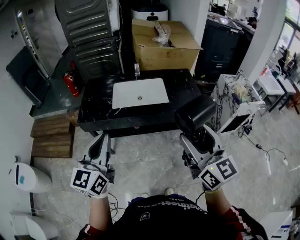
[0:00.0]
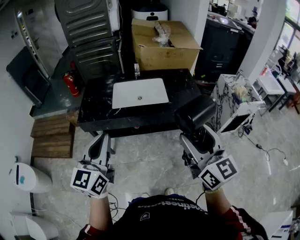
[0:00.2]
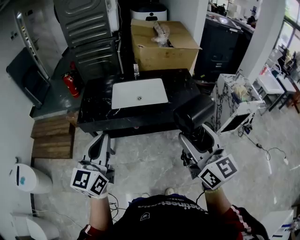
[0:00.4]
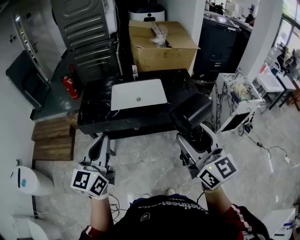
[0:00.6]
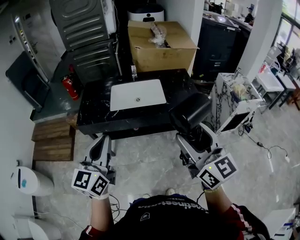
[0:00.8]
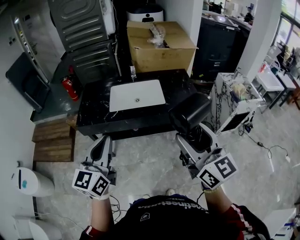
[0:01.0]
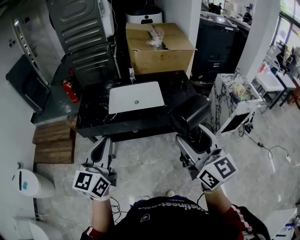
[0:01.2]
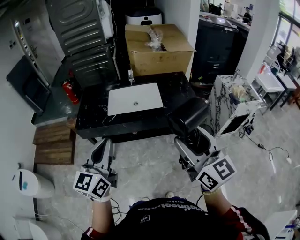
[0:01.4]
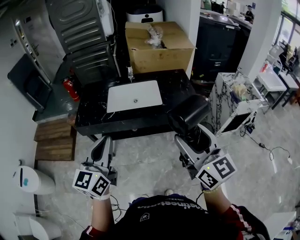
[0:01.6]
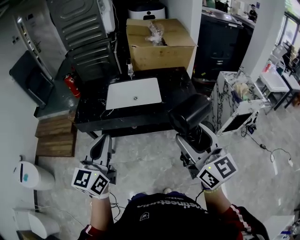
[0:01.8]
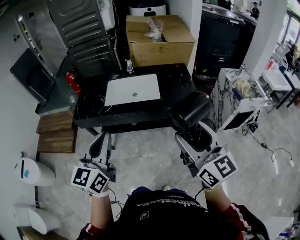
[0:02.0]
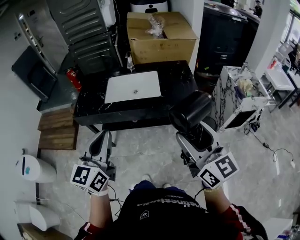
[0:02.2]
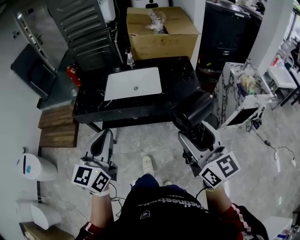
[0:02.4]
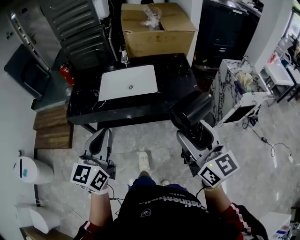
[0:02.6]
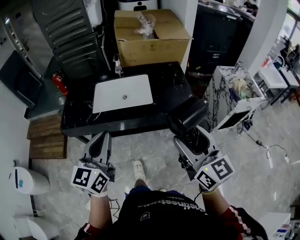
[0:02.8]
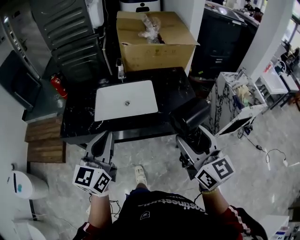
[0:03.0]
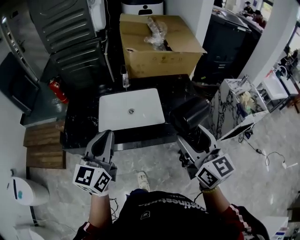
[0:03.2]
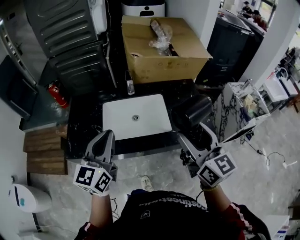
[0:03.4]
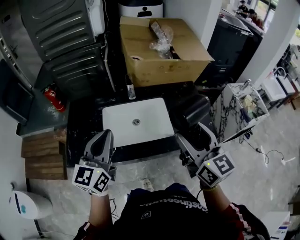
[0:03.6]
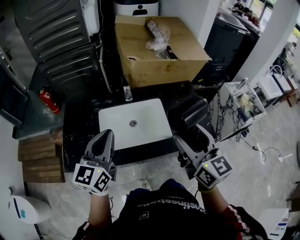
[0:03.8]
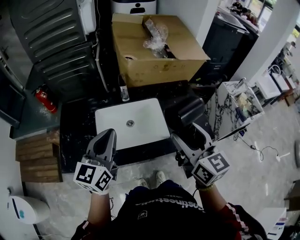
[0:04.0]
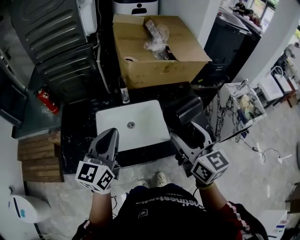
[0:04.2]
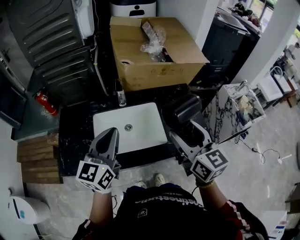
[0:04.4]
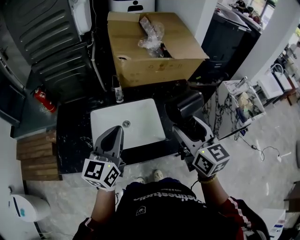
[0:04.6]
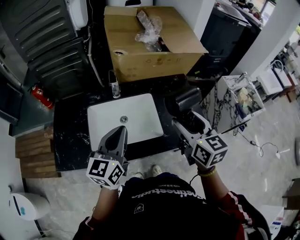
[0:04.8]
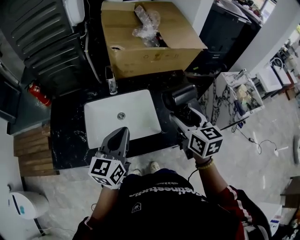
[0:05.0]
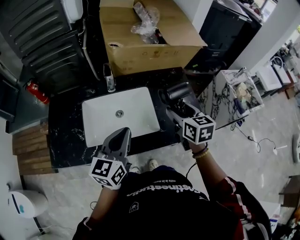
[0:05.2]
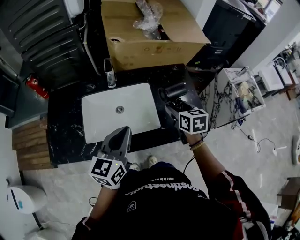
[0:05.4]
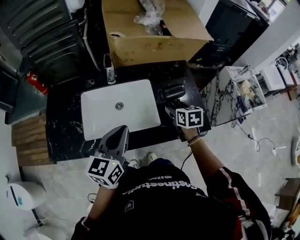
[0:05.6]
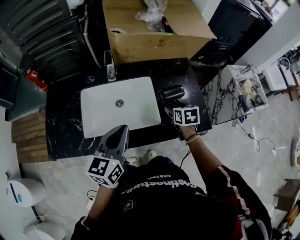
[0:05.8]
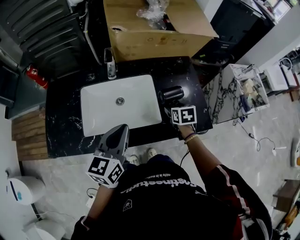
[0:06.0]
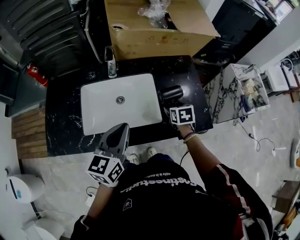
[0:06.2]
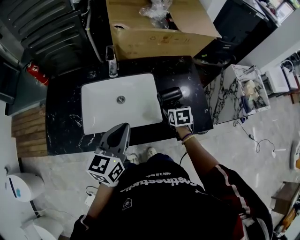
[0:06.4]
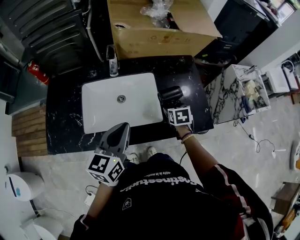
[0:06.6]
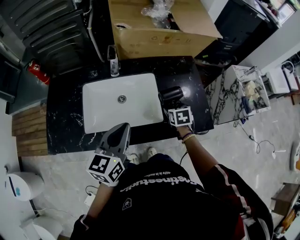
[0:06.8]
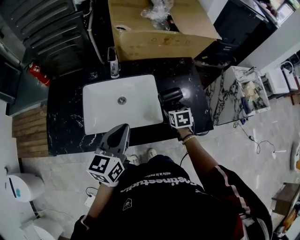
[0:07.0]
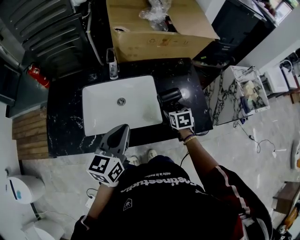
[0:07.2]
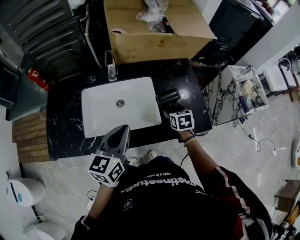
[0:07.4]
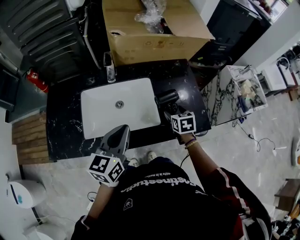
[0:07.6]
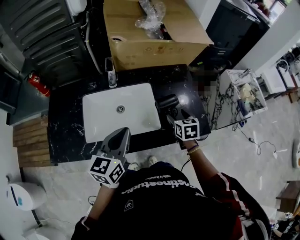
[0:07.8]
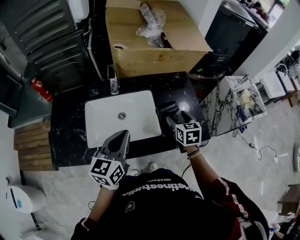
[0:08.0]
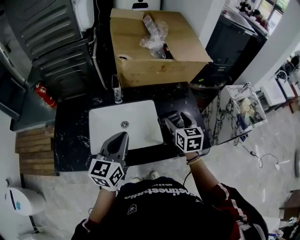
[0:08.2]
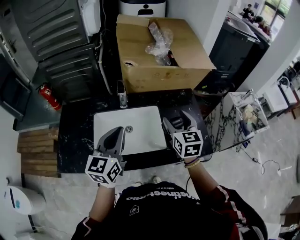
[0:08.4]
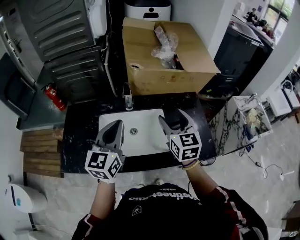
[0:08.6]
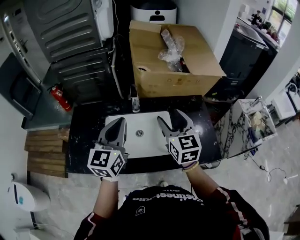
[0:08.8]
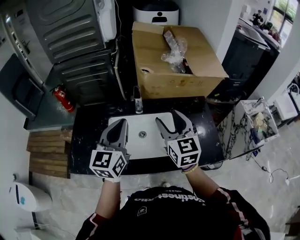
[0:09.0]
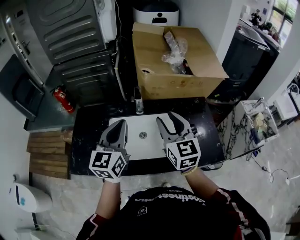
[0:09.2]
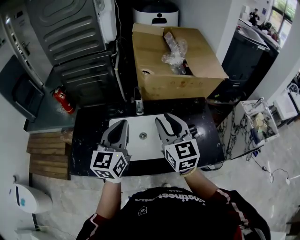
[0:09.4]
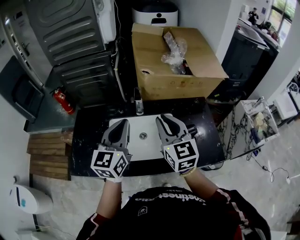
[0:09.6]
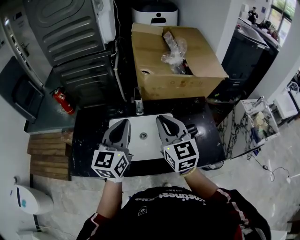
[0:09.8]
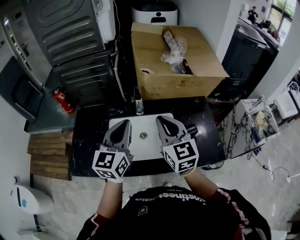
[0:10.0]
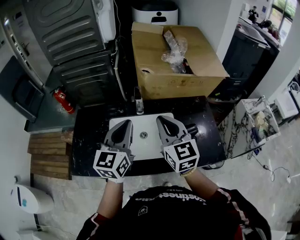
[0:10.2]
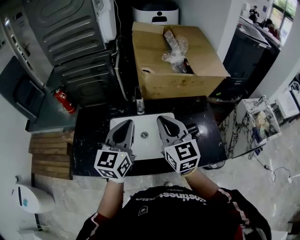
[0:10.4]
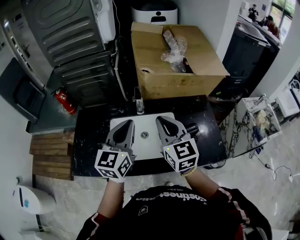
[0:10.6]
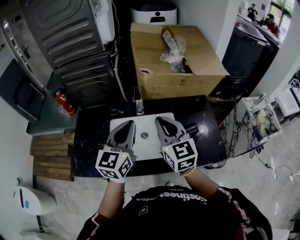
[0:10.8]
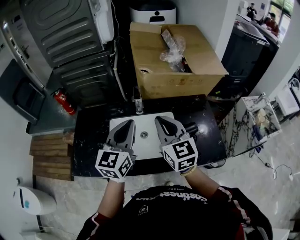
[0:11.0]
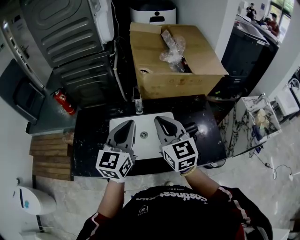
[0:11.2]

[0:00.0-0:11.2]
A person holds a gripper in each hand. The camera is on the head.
0.0 to 1.6 s: The grippers both shift to the right by roughly 5 cm.
1.6 to 3.2 s: Both grippers travel together forward, roughly 25 cm.
3.2 to 4.8 s: The two grippers go approximately 20 cm forward.
4.8 to 6.4 s: The right gripper shifts some 30 cm downward, and tilts its fingers some 40 degrees downward; the left gripper shifts some 5 cm downward.
6.4 to 8.0 s: The right gripper heads upward, covering approximately 10 cm.
8.0 to 9.6 s: The left gripper moves upward, to the left and forward, approximately 15 cm; the right gripper goes approximately 30 cm upward and to the left, angles its fingers upward, by about 30 degrees, and closes up.
9.6 to 11.2 s: The grippers stay close to where they were, moving slightly.

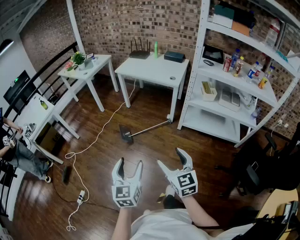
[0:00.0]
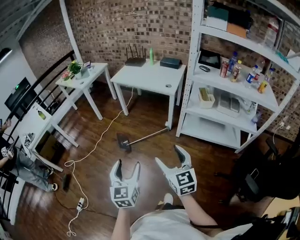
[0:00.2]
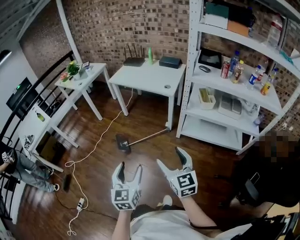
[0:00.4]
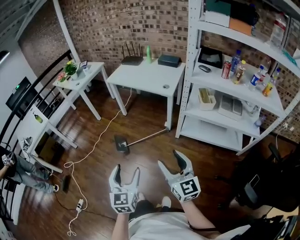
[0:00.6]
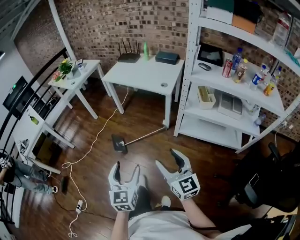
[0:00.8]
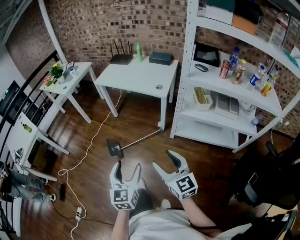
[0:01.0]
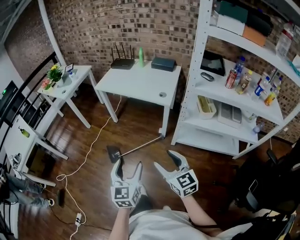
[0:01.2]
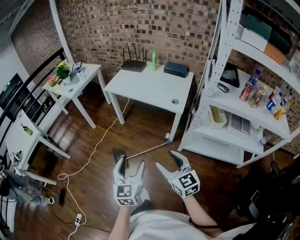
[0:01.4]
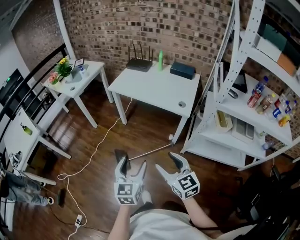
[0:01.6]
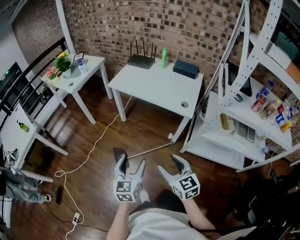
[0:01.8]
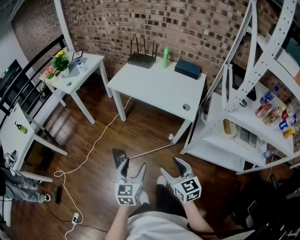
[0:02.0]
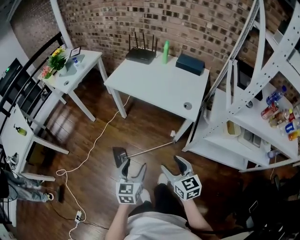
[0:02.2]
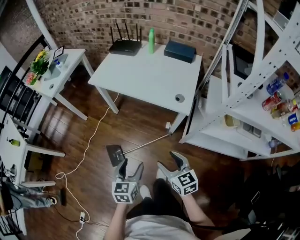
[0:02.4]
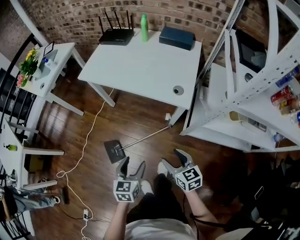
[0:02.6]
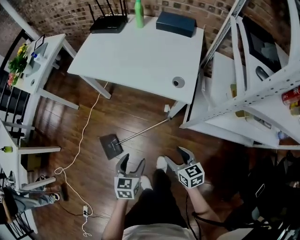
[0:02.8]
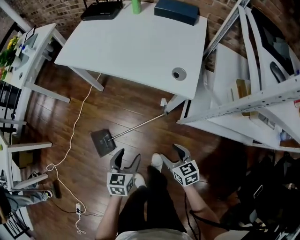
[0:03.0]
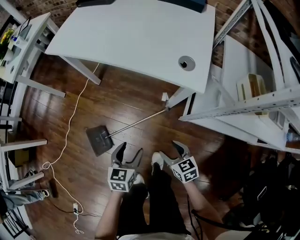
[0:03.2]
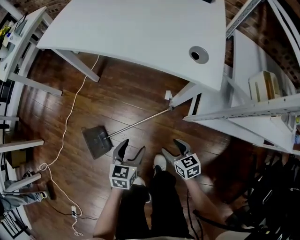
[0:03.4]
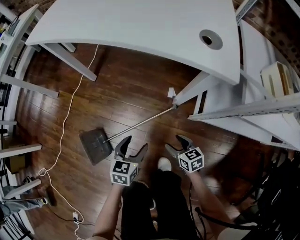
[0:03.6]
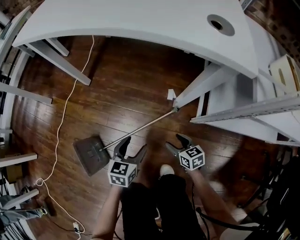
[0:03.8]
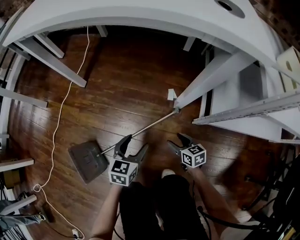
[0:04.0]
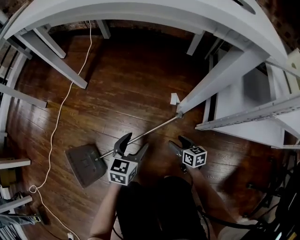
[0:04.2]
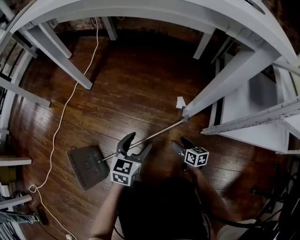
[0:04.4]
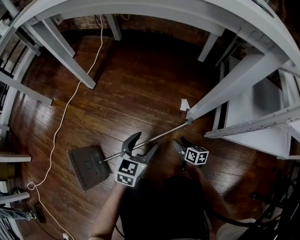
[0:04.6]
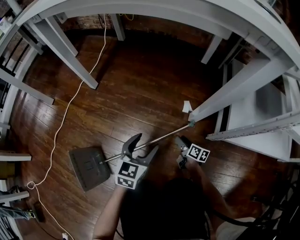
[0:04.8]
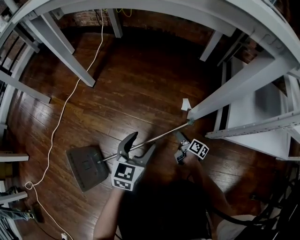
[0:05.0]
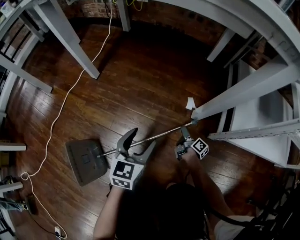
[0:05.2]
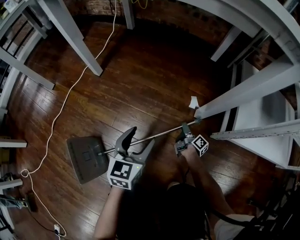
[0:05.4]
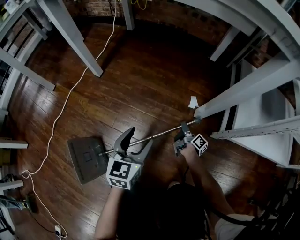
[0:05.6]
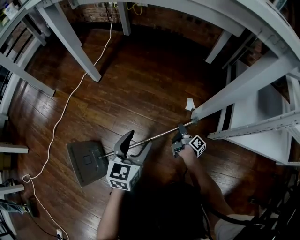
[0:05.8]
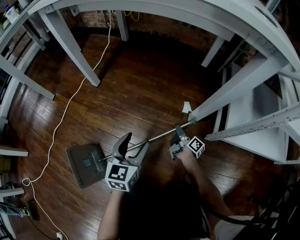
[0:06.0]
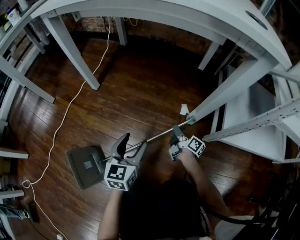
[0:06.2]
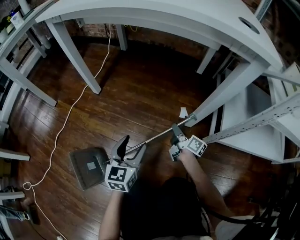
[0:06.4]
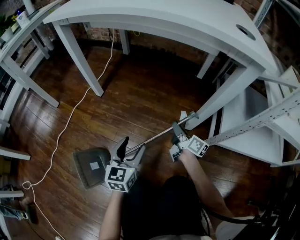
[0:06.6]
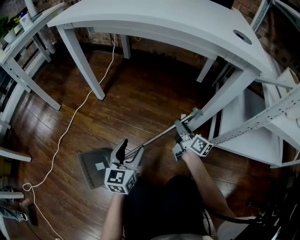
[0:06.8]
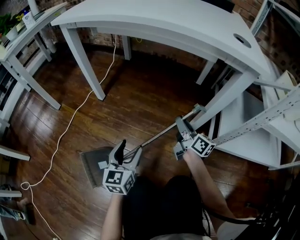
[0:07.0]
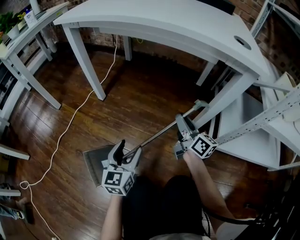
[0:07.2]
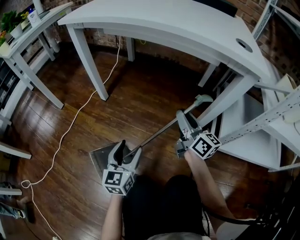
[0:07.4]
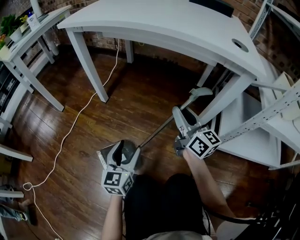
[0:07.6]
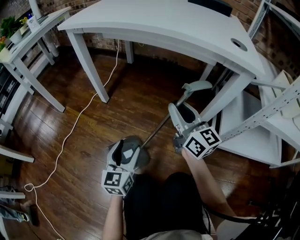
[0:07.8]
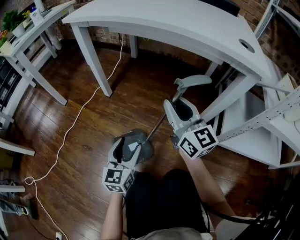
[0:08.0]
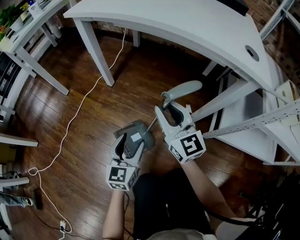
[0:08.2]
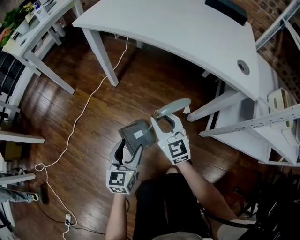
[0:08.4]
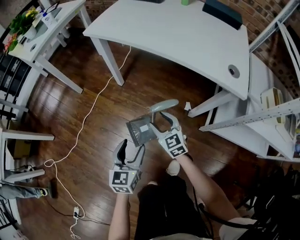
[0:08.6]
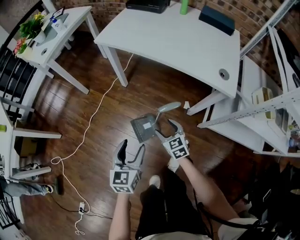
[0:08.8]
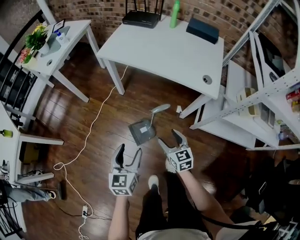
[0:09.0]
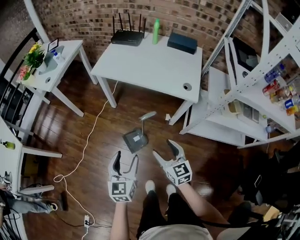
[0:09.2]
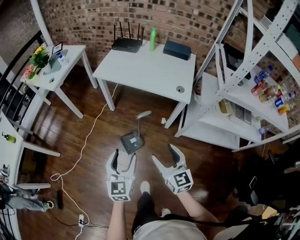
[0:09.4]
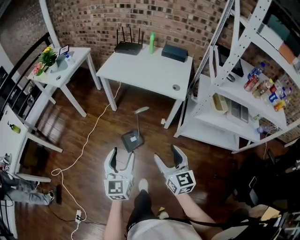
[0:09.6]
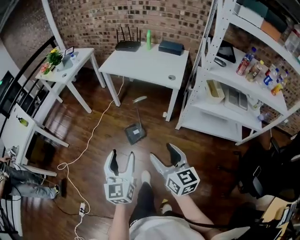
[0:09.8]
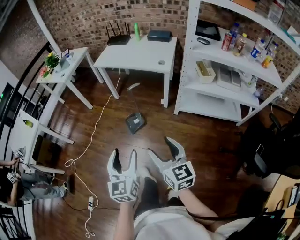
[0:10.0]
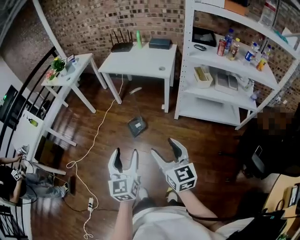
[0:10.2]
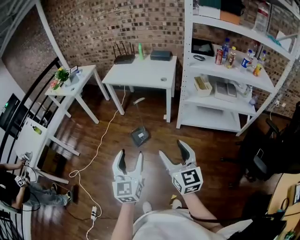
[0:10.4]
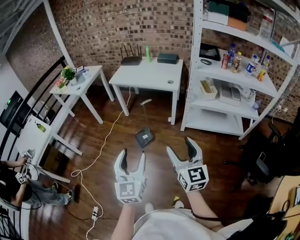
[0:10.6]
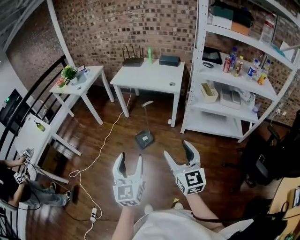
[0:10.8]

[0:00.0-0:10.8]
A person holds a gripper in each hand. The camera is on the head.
0.0 to 1.6 s: The two grippers go about 40 cm forward.
1.6 to 3.0 s: The left gripper heads downward and forward, covering approximately 40 cm, and rotates some 30 degrees, while the right gripper goes roughly 40 cm downward, forward and to the right, and turns by roughly 30 degrees.
3.0 to 4.6 s: Both grippers travel together downward, about 50 cm. The left gripper rotates about 20 degrees, while the right gripper turns by about 30 degrees.
4.6 to 6.2 s: The left gripper is displaced to the left and upward by approximately 10 cm; the right gripper travels upward and forward by some 10 cm, turns by roughly 40 degrees, and closes its fingers.
6.2 to 7.8 s: The left gripper travels upward and to the left by roughly 10 cm; the right gripper shifts roughly 40 cm upward, and rotates around the line of its fingers by some 60 degrees, counterclockwise from behind.
7.8 to 9.2 s: The right gripper heads upward and backward, covering approximately 40 cm, swivels roughly 30 degrees, and opens its fingers. Meanwhile the left gripper shifts approximately 50 cm upward.
9.2 to 10.8 s: The pair of grippers is taken backward, about 40 cm. The grippers both shift upward by roughly 25 cm. The right gripper changes its angle by approximately 20 degrees.

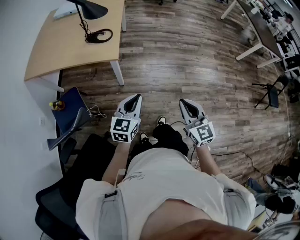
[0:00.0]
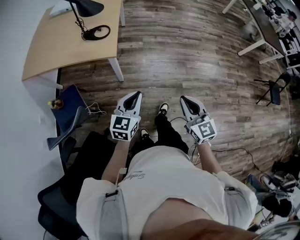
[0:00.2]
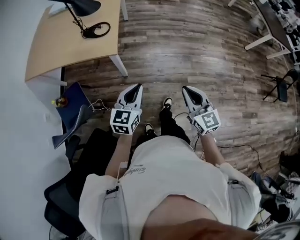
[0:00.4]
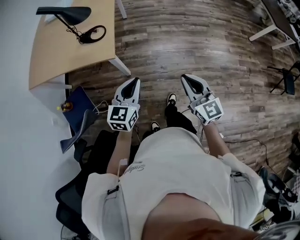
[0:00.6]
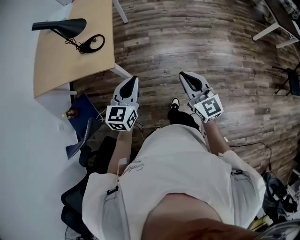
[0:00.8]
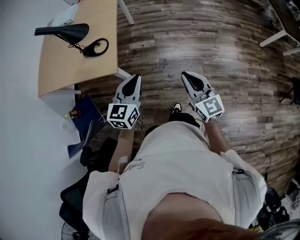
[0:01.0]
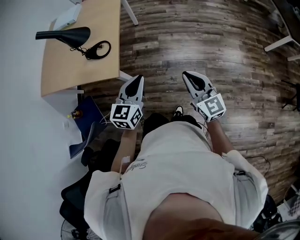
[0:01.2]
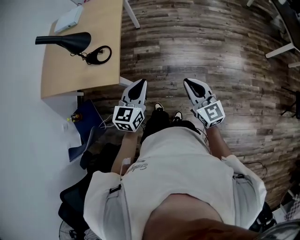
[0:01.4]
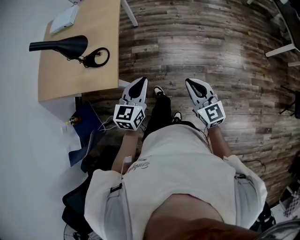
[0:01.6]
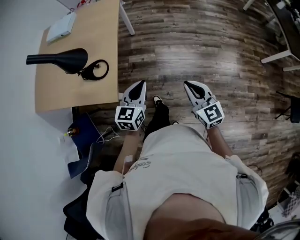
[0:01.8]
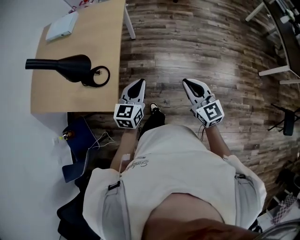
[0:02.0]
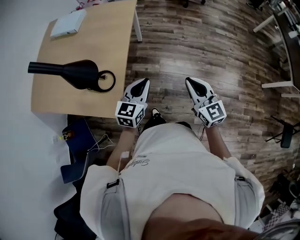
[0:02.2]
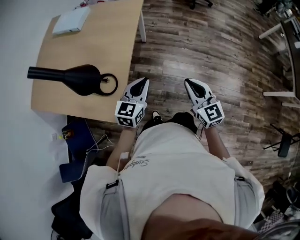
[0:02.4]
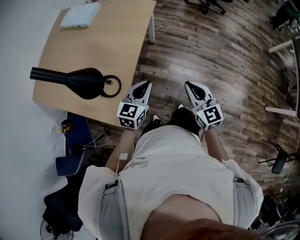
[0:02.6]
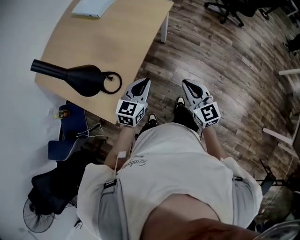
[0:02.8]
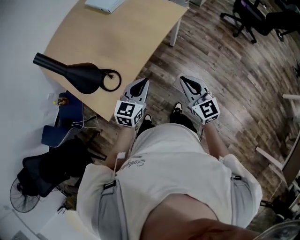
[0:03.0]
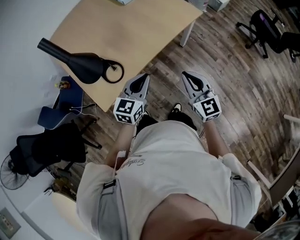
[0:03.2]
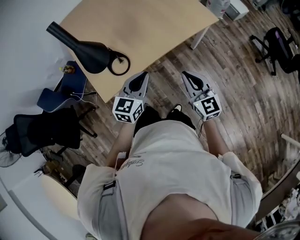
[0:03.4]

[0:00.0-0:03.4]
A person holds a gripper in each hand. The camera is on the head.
0.0 to 1.6 s: Both grippers travel together forward, approximately 35 cm.
1.6 to 3.4 s: The left gripper ends up roughly 40 cm from where it was, and changes its angle by approximately 50 degrees; the right gripper changes place by some 50 cm, and changes its angle by approximately 50 degrees.
